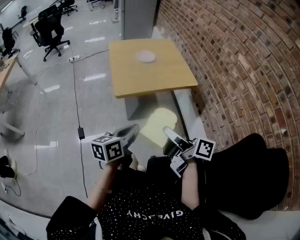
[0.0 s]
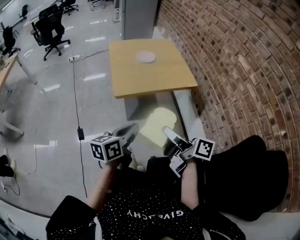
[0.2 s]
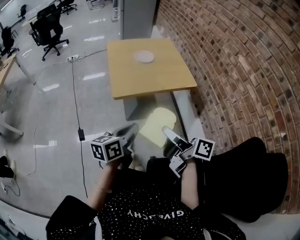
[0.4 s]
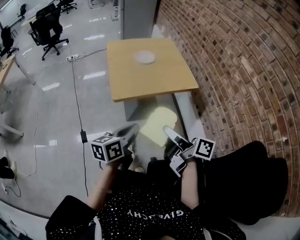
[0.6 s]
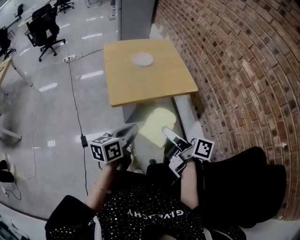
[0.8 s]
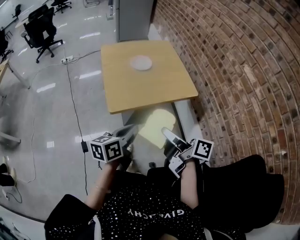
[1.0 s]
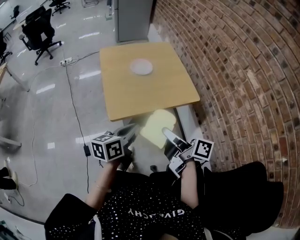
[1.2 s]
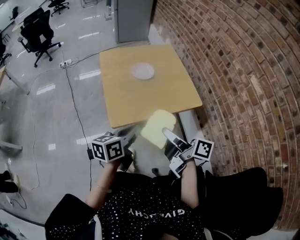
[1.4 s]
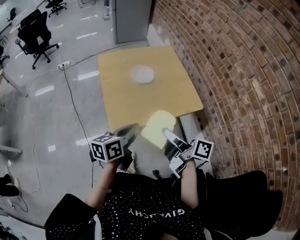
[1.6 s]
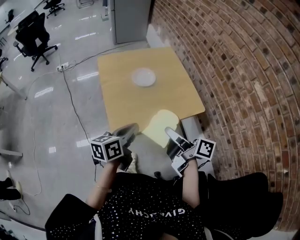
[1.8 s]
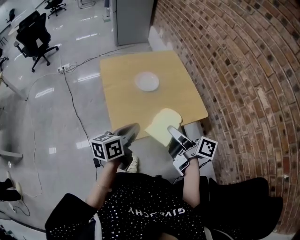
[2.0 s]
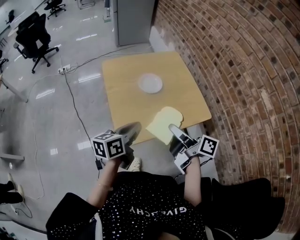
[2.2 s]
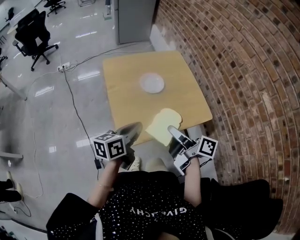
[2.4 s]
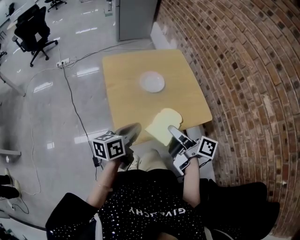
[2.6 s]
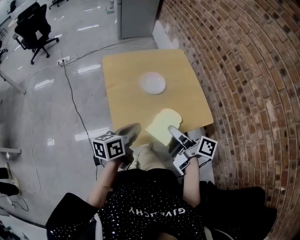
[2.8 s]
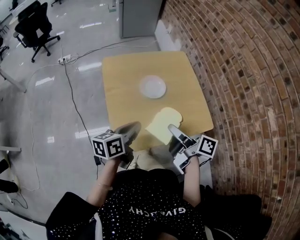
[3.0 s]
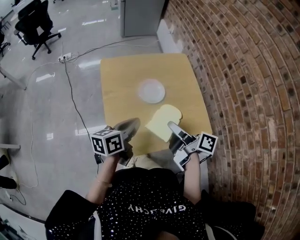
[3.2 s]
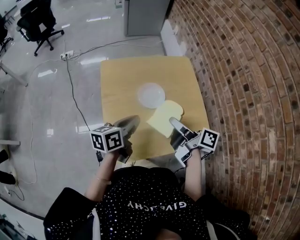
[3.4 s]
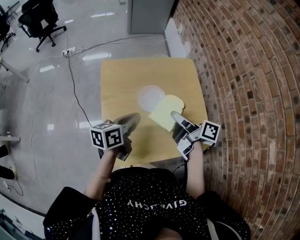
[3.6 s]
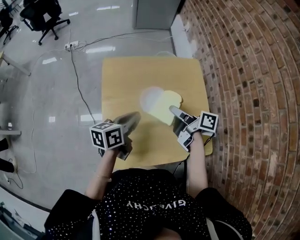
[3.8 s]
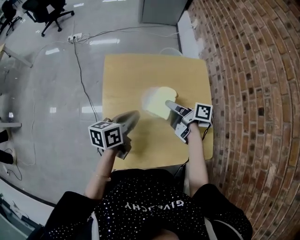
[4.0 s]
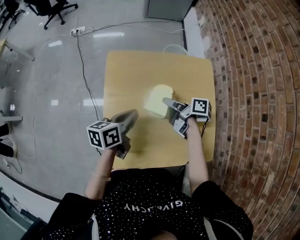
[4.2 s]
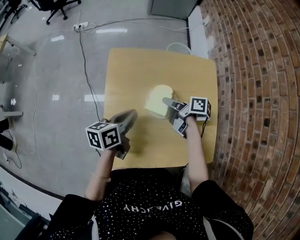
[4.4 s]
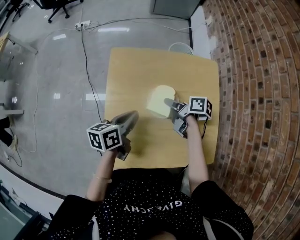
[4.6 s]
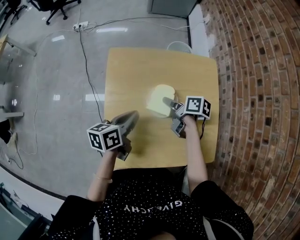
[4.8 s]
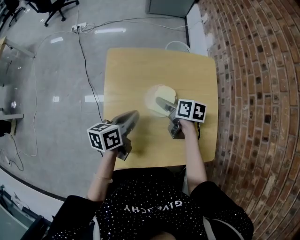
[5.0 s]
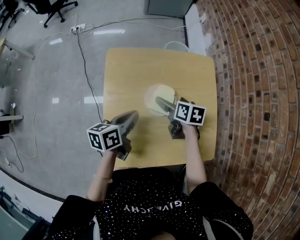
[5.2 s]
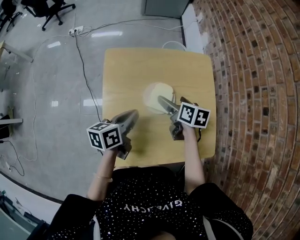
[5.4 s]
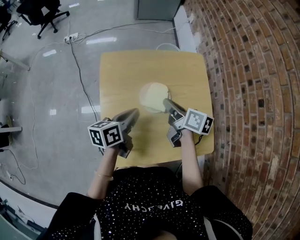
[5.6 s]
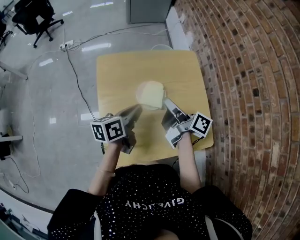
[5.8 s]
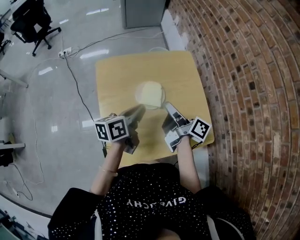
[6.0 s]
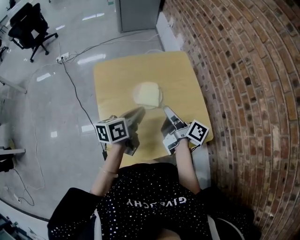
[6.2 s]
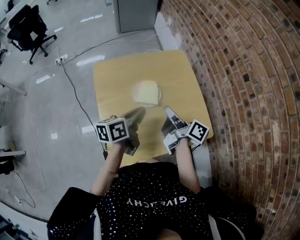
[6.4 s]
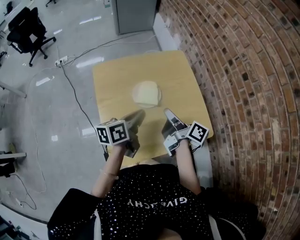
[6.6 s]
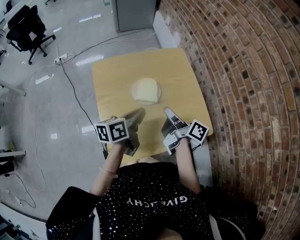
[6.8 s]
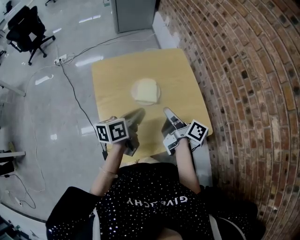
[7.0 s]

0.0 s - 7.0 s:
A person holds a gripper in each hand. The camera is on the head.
0.0 s - 1.4 s: The left gripper shifts by about 20 cm.
1.4 s - 2.8 s: The left gripper changes place by about 15 cm.
2.8 s - 4.2 s: The left gripper ends up roughly 20 cm from where it was.
5.6 s - 7.0 s: The left gripper shifts by roughly 10 cm.

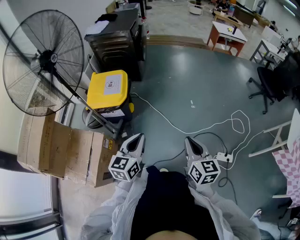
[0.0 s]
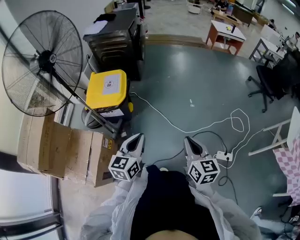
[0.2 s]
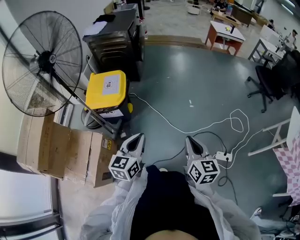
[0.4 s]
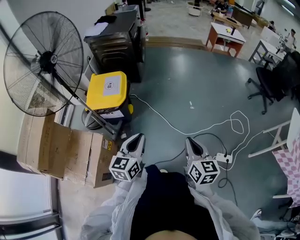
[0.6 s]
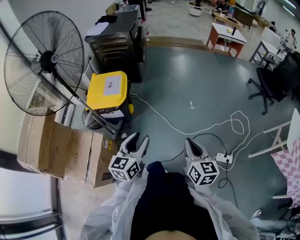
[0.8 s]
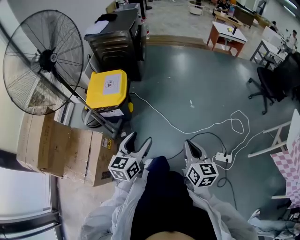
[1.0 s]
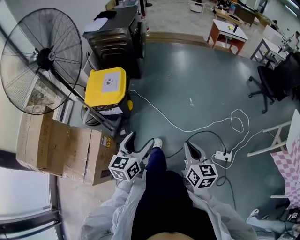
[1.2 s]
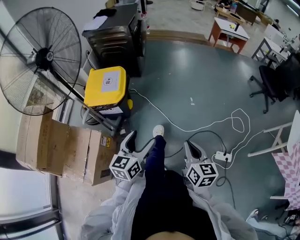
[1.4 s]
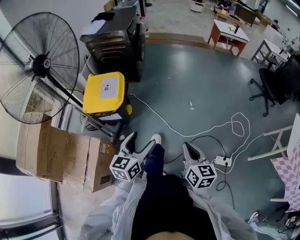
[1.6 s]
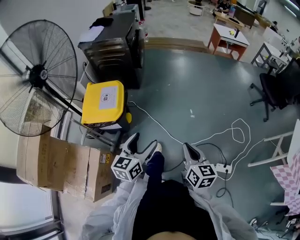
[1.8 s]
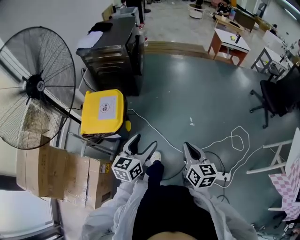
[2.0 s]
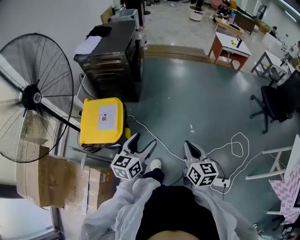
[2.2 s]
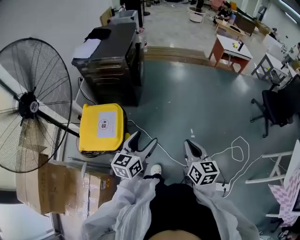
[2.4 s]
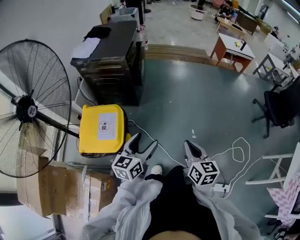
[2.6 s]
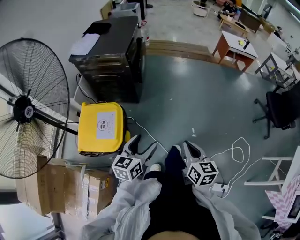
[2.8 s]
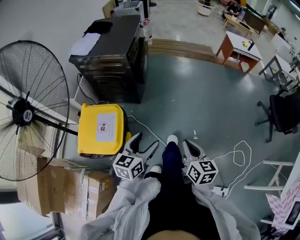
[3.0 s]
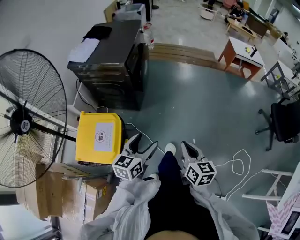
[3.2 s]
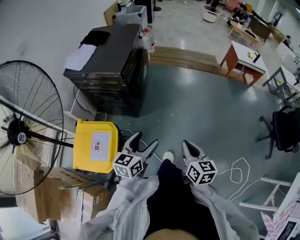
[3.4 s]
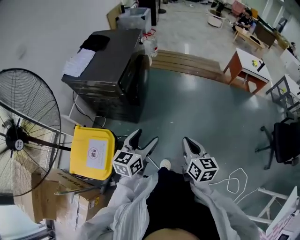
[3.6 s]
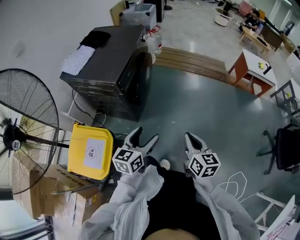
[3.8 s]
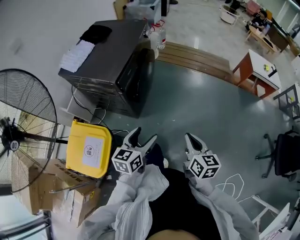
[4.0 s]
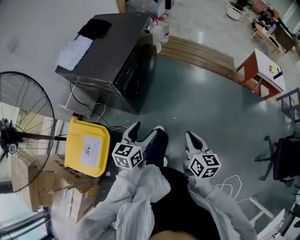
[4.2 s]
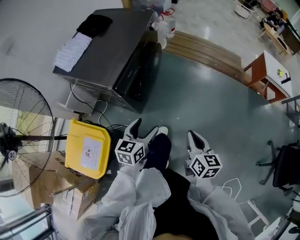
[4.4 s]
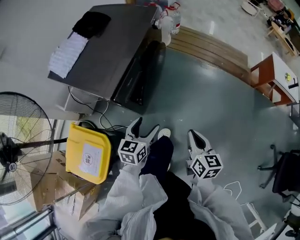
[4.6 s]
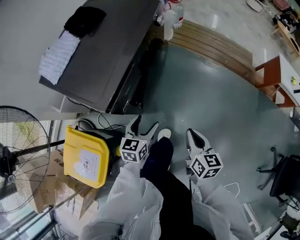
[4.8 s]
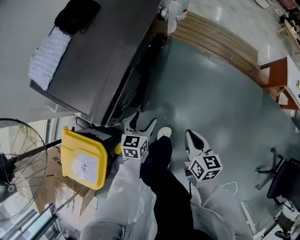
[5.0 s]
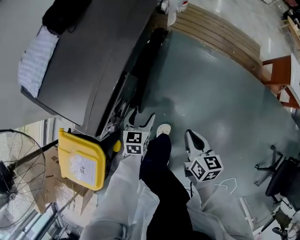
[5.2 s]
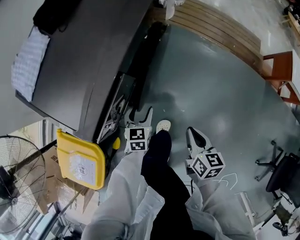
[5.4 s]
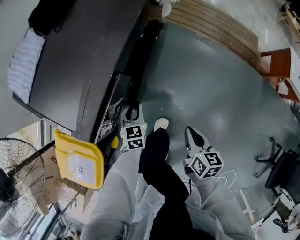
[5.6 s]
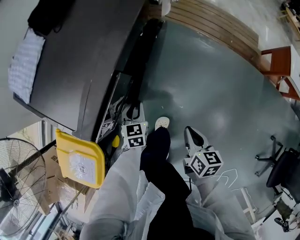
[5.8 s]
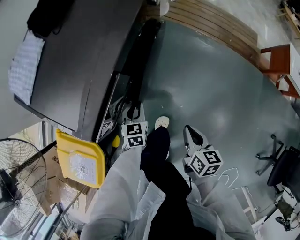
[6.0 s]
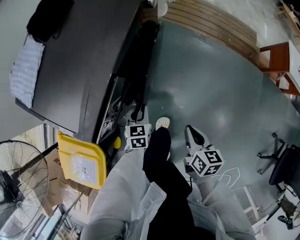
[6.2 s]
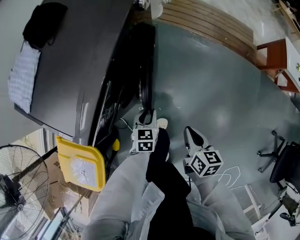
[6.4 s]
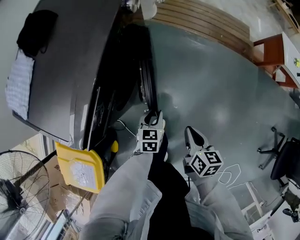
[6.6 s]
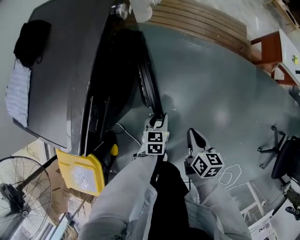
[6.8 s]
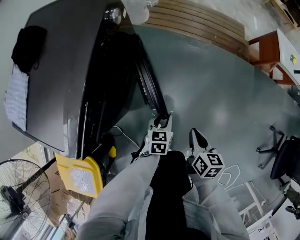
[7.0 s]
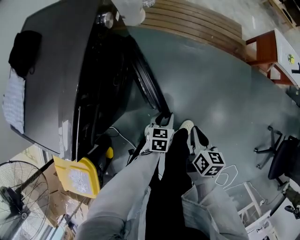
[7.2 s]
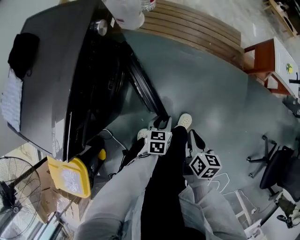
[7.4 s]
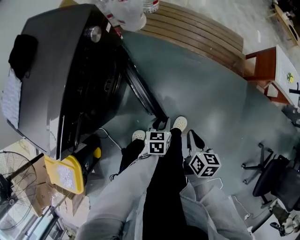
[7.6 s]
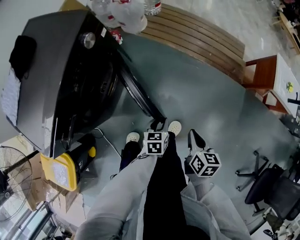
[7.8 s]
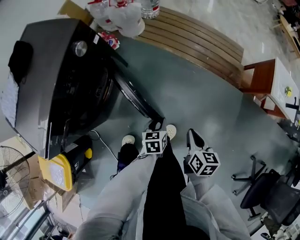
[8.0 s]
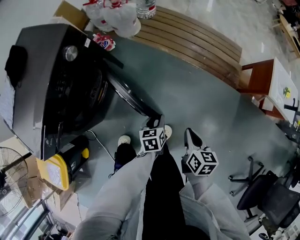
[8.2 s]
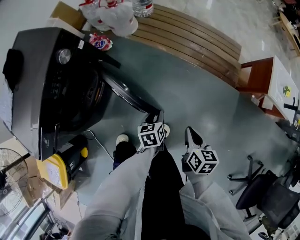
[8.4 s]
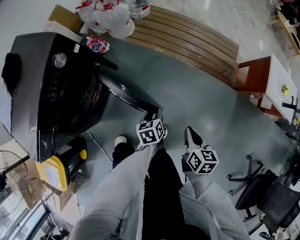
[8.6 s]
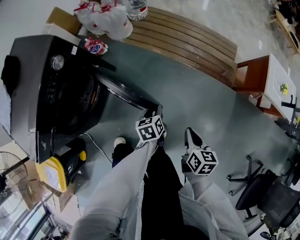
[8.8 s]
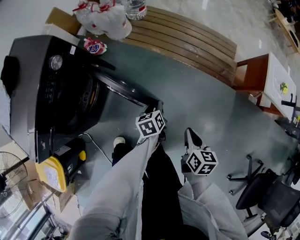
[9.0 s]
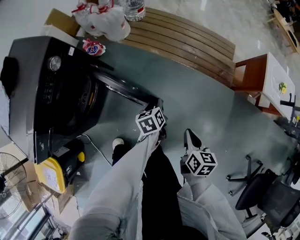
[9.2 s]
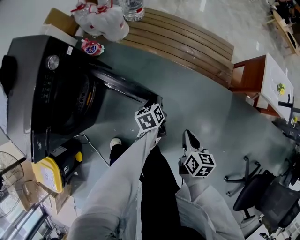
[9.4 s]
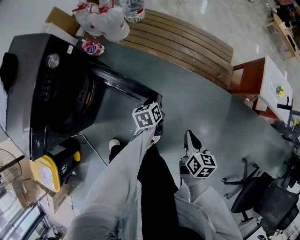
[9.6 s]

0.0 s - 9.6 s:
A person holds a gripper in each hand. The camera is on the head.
0.0 s - 1.6 s: The left gripper travels forward by approximately 5 cm, and opens; the right gripper ends up approximately 5 cm from where it was.
1.6 s - 3.2 s: The two grippers travel together, forward, roughly 50 cm.
3.2 s - 4.8 s: The pair of grippers is taken forward, roughly 50 cm. The left gripper swivels about 20 degrees.
4.8 s - 6.4 s: The two grippers go some 15 cm downward and forward. The left gripper closes.
6.4 s - 8.0 s: The grippers both shift to the right and forward by some 35 cm. The left gripper changes its angle by some 20 degrees.
8.0 s - 9.6 s: The right gripper is displaced to the right by about 15 cm, while the left gripper goes some 20 cm forward and to the right.

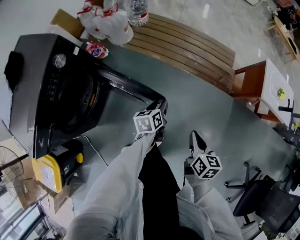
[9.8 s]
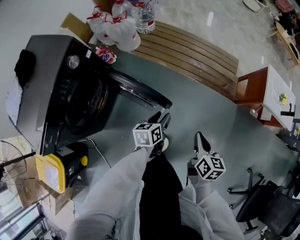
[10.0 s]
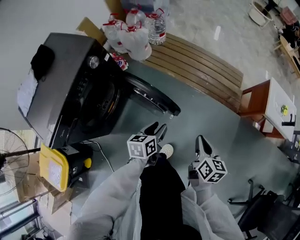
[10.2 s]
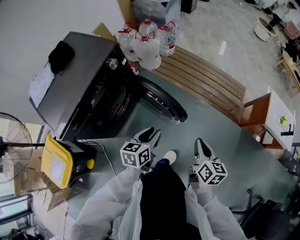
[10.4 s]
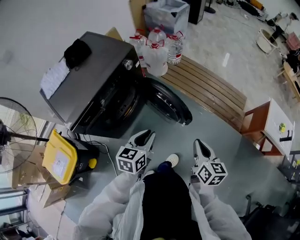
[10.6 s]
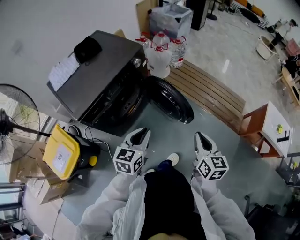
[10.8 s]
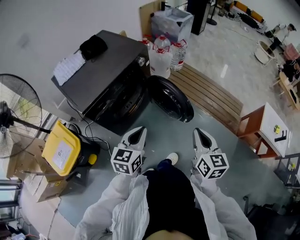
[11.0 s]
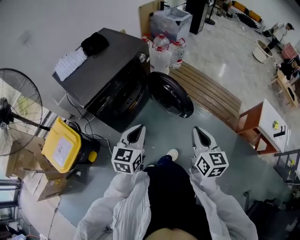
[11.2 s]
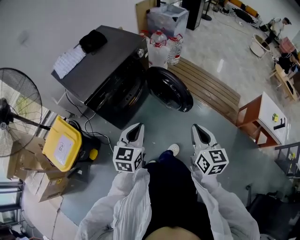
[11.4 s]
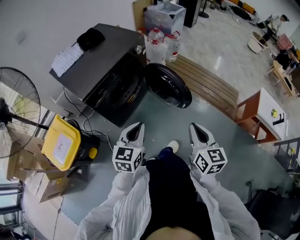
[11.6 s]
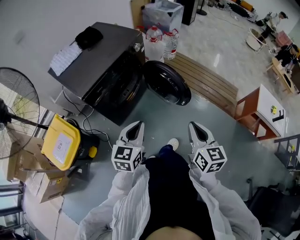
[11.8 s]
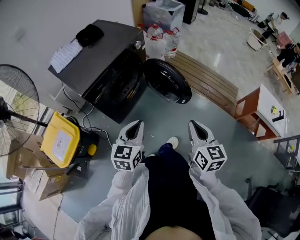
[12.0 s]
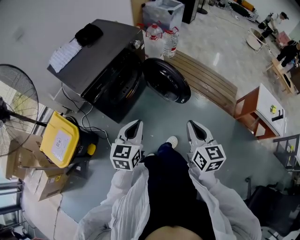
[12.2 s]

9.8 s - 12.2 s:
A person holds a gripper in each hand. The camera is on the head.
9.8 s - 11.0 s: The left gripper travels upward, backward and to the left by roughly 50 cm, swivels roughly 40 degrees, and closes up. The right gripper goes about 35 cm upward, to the left and backward, and turns by some 40 degrees.
11.0 s - 12.2 s: The two grippers go some 10 cm backward.

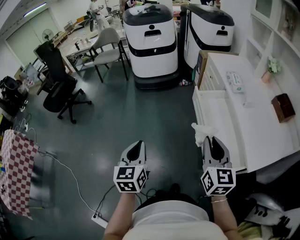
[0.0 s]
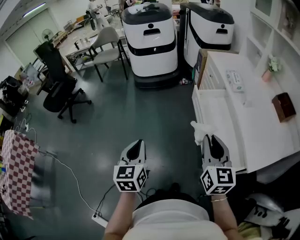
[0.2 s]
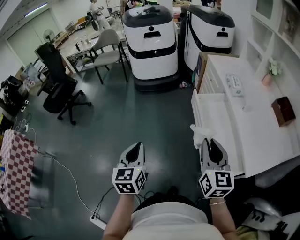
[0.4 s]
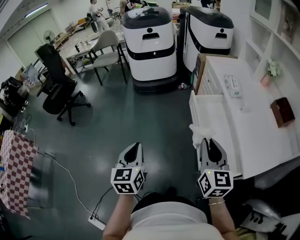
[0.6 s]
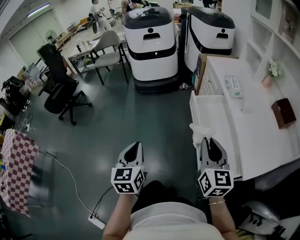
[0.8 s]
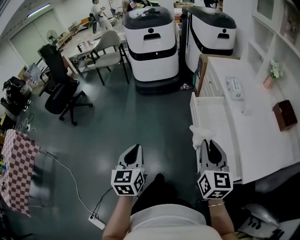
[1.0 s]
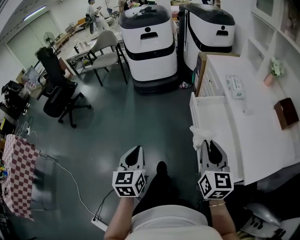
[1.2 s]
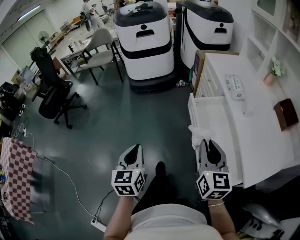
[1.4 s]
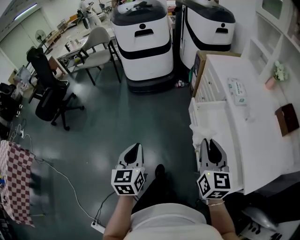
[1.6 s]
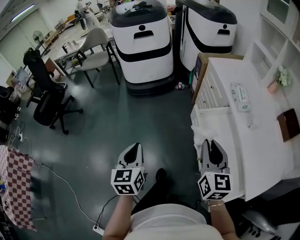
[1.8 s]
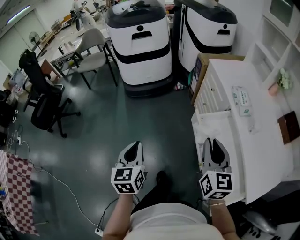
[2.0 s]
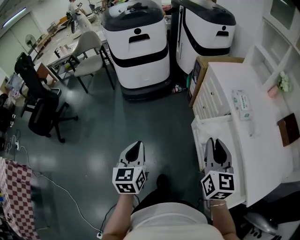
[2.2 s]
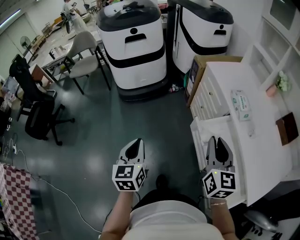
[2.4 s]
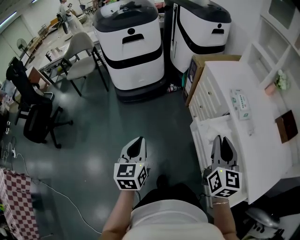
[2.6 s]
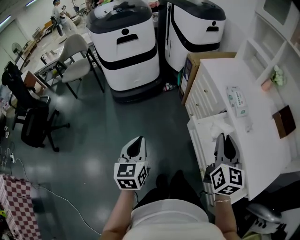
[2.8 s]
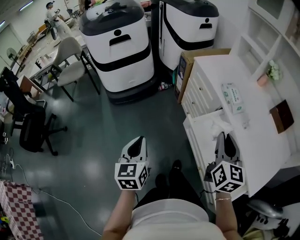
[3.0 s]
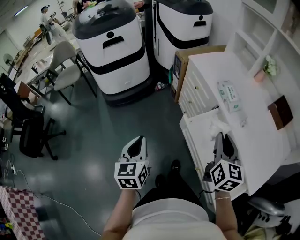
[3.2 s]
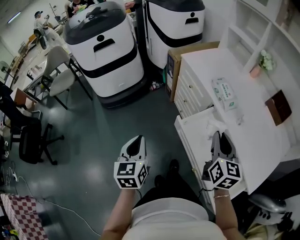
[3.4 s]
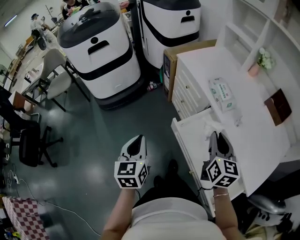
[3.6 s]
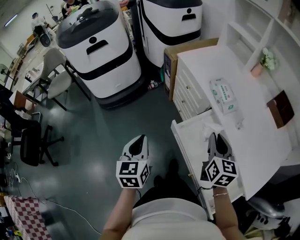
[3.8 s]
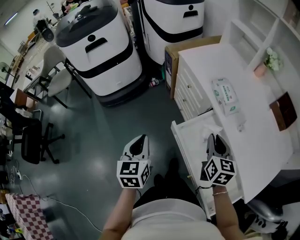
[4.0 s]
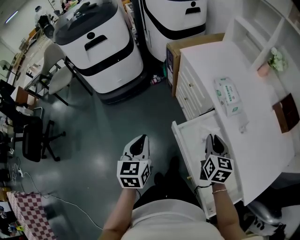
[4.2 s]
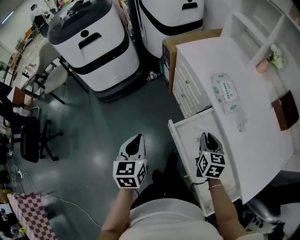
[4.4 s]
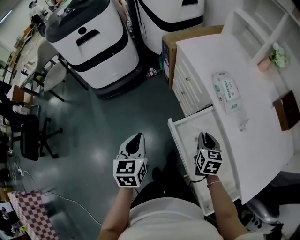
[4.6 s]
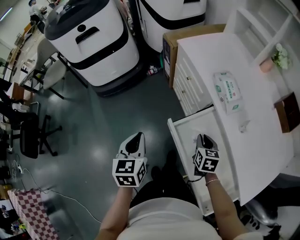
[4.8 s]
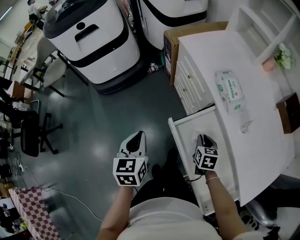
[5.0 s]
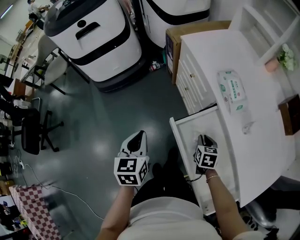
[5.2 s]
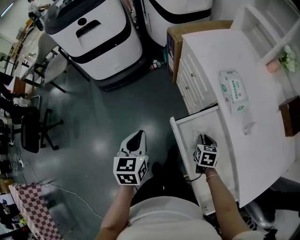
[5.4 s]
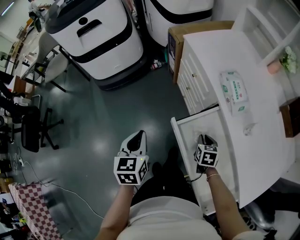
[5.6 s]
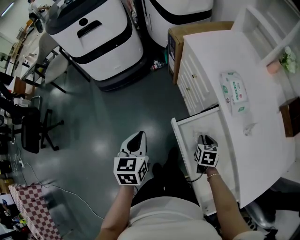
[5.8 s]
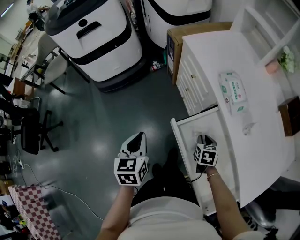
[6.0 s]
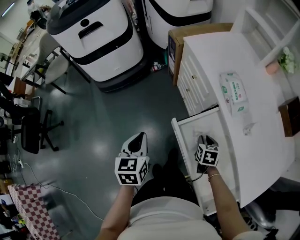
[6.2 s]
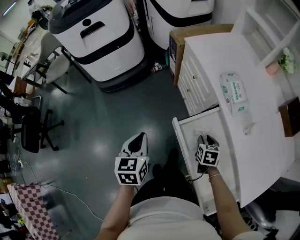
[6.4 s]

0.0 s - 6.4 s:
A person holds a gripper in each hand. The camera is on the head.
0.0 s - 1.6 s: Both grippers travel together forward, about 15 cm.
1.6 s - 3.2 s: Both grippers move forward, about 20 cm. The right gripper swivels roughly 20 degrees.
3.2 s - 4.8 s: The right gripper heads downward, covering roughly 25 cm, and angles its fingers downward, by about 30 degrees. The left gripper travels forward, to the right and downward by some 15 cm.
4.8 s - 6.4 s: The right gripper goes roughly 5 cm downward.
